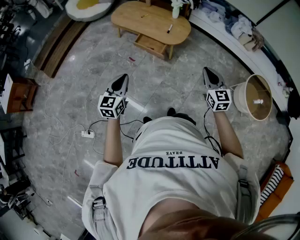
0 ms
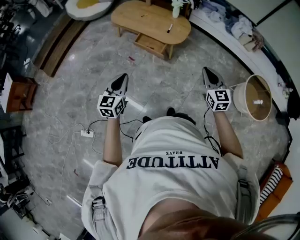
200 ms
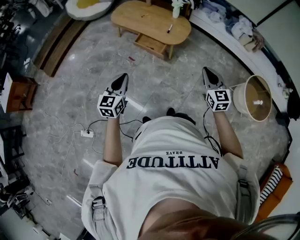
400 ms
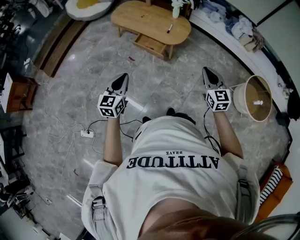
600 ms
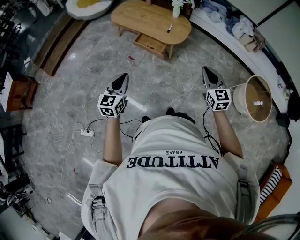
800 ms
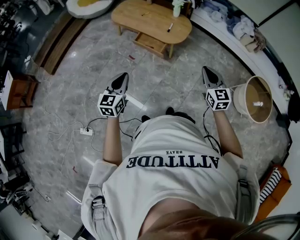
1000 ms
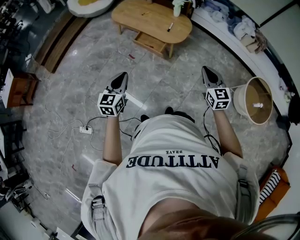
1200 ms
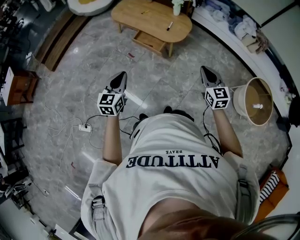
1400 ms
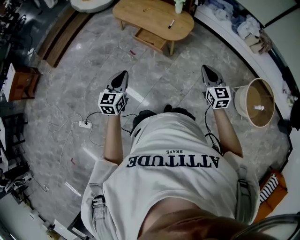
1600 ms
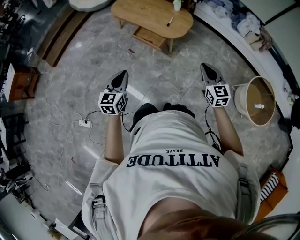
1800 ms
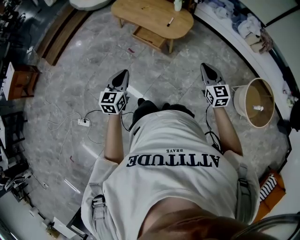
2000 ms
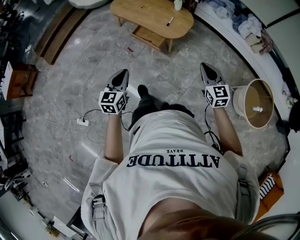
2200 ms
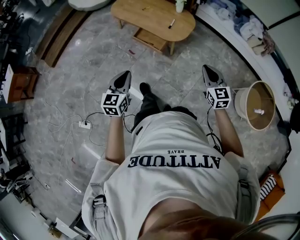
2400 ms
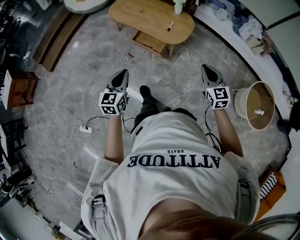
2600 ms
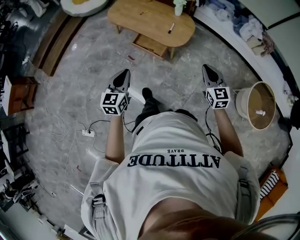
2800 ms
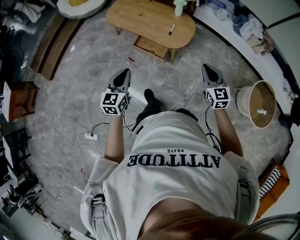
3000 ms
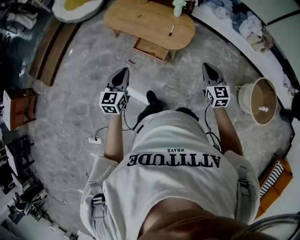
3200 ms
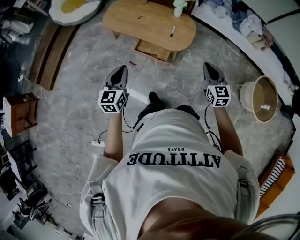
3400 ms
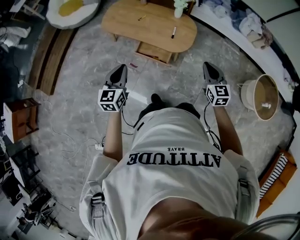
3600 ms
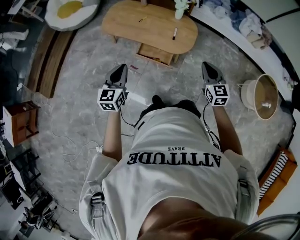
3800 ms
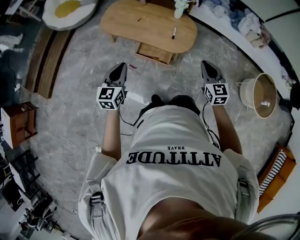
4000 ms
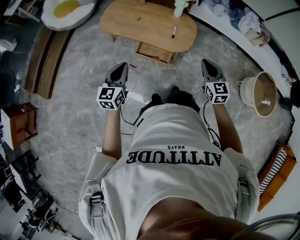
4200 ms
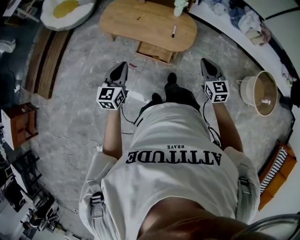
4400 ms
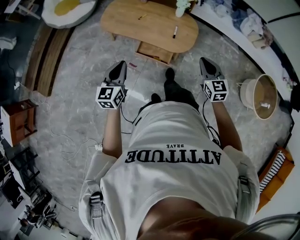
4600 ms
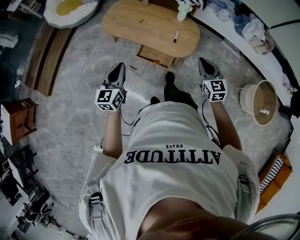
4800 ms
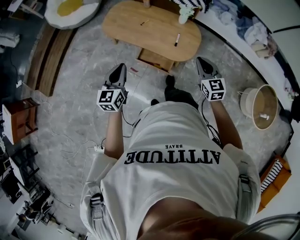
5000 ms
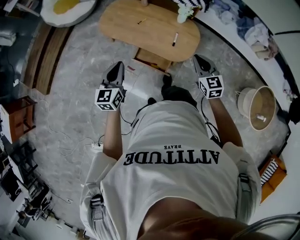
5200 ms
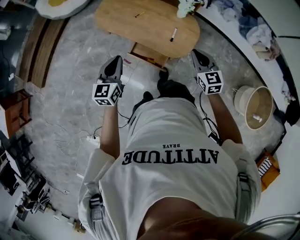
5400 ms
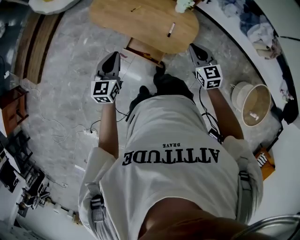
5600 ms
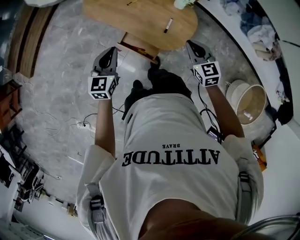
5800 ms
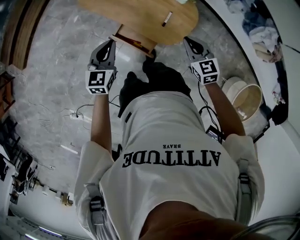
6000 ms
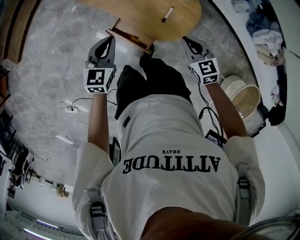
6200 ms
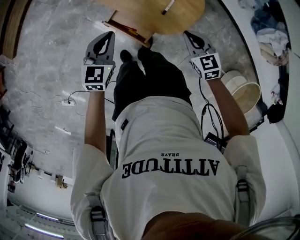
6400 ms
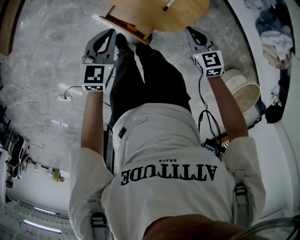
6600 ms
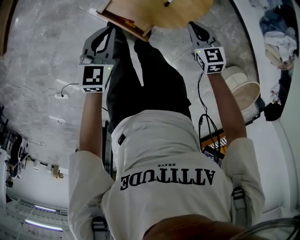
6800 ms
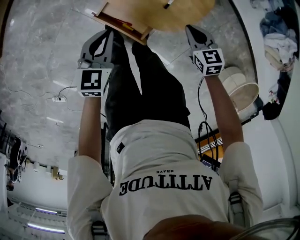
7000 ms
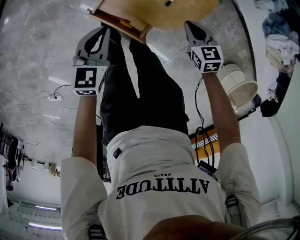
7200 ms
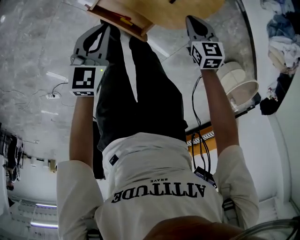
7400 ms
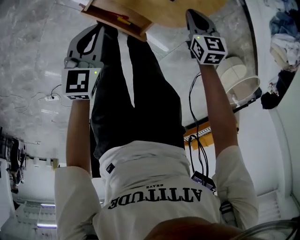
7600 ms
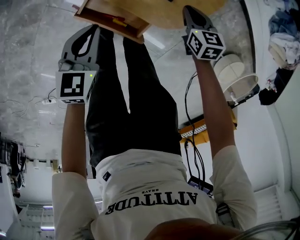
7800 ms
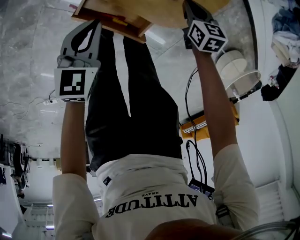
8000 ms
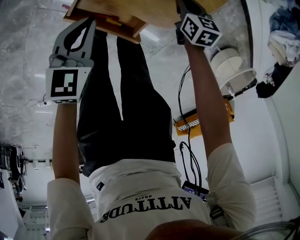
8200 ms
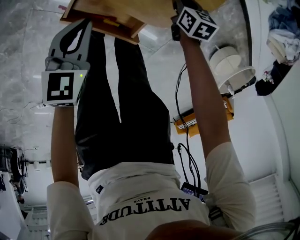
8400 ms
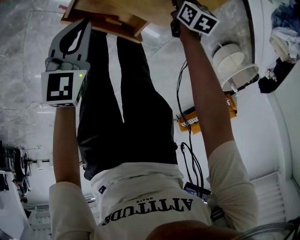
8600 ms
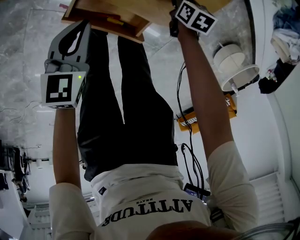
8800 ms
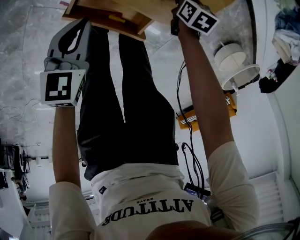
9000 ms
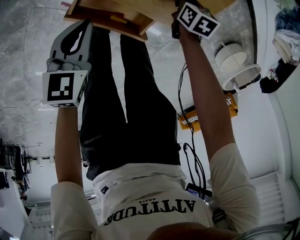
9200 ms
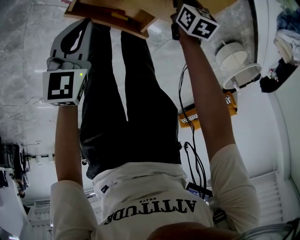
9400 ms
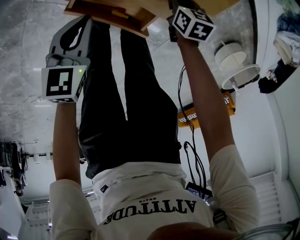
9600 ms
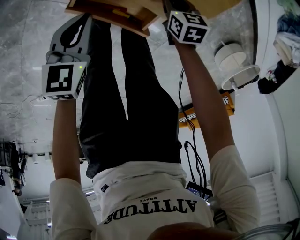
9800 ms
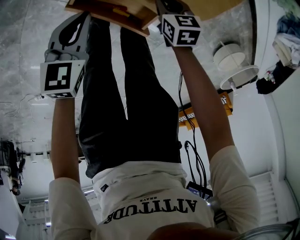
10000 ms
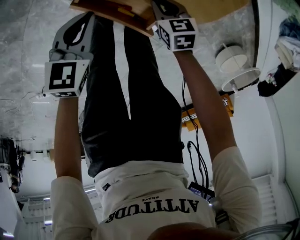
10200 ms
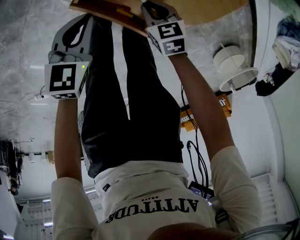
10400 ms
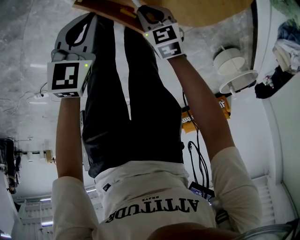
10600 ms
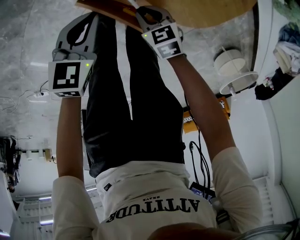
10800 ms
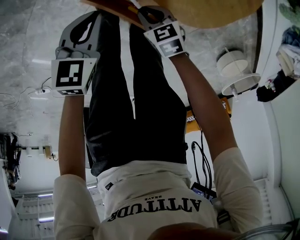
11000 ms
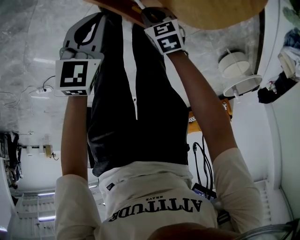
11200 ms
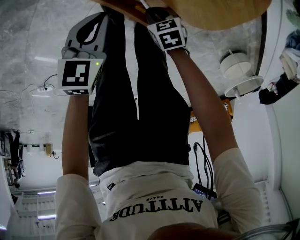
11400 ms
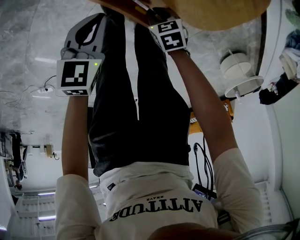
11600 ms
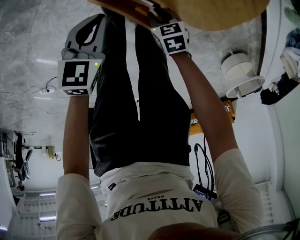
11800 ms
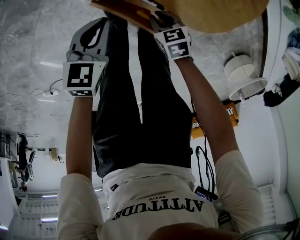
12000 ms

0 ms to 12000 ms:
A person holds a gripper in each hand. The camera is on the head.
0 ms to 1600 ms: The left gripper travels to the right by about 10 cm; the right gripper shifts about 10 cm to the right and forward.
1600 ms to 3000 ms: The grippers both shift forward by some 20 cm.
3000 ms to 4400 ms: The right gripper heads to the left and forward, covering about 15 cm. The left gripper goes some 20 cm forward and to the left.
4400 ms to 6000 ms: The right gripper goes roughly 35 cm forward and downward, and swivels about 30 degrees. Meanwhile the left gripper shifts approximately 30 cm forward, downward and to the right.
6000 ms to 7600 ms: The grippers both shift downward by about 35 cm. The right gripper swivels approximately 20 degrees.
7600 ms to 9000 ms: The left gripper is displaced downward by about 10 cm, while the right gripper heads downward, covering roughly 20 cm, and turns by roughly 30 degrees.
9000 ms to 10400 ms: The right gripper changes place by some 20 cm, and turns by some 40 degrees, while the left gripper shifts by about 5 cm.
10400 ms to 12000 ms: The right gripper ends up about 5 cm from where it was.

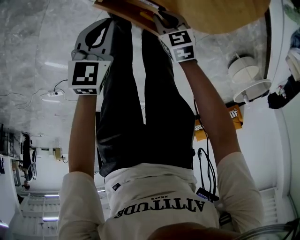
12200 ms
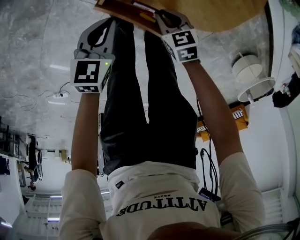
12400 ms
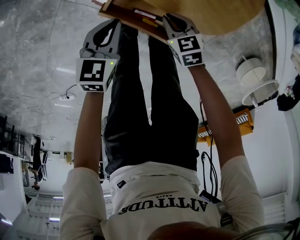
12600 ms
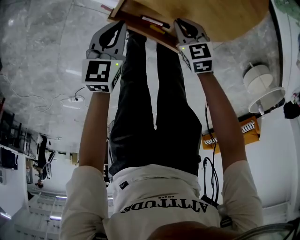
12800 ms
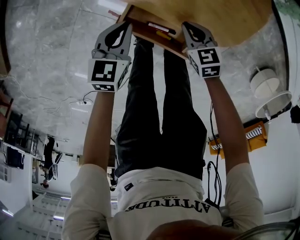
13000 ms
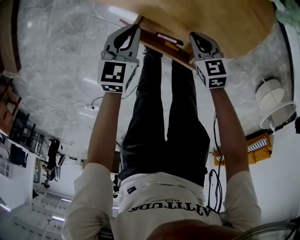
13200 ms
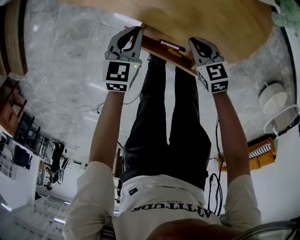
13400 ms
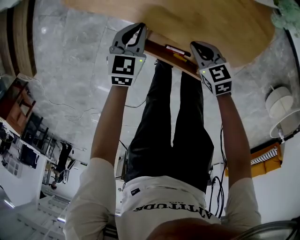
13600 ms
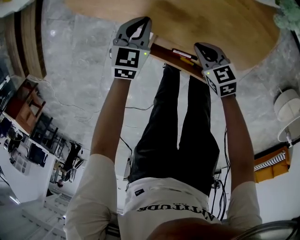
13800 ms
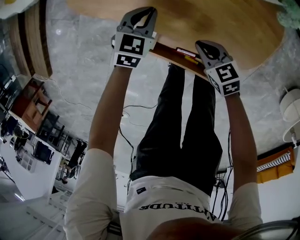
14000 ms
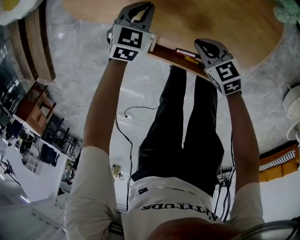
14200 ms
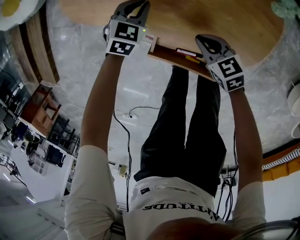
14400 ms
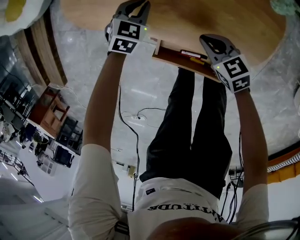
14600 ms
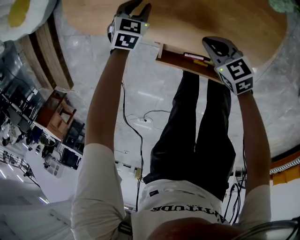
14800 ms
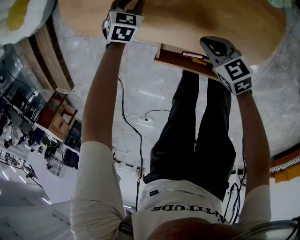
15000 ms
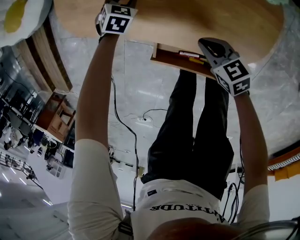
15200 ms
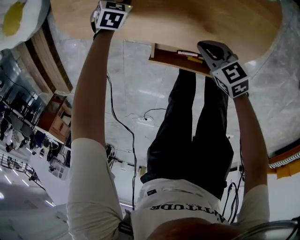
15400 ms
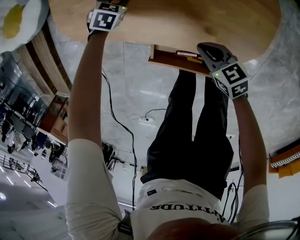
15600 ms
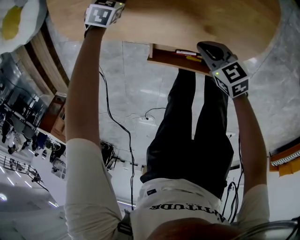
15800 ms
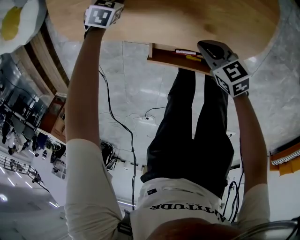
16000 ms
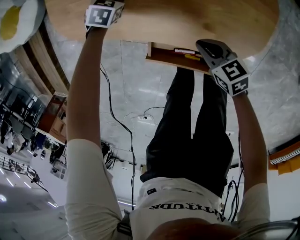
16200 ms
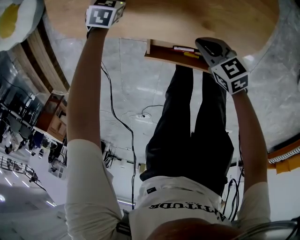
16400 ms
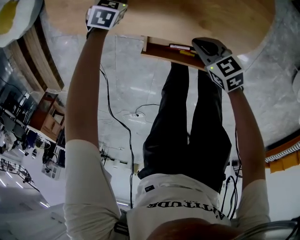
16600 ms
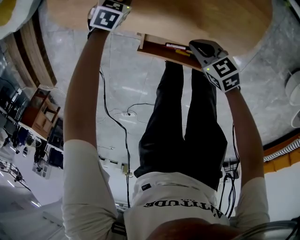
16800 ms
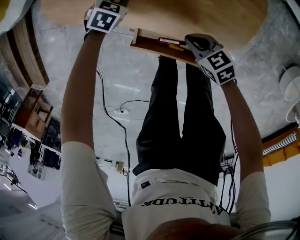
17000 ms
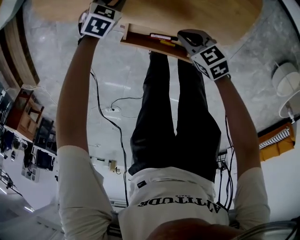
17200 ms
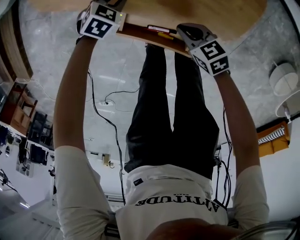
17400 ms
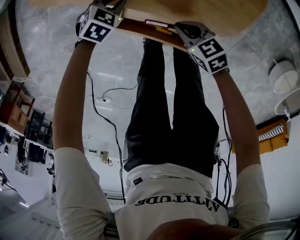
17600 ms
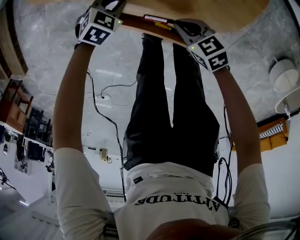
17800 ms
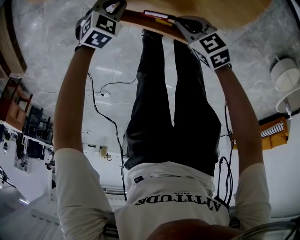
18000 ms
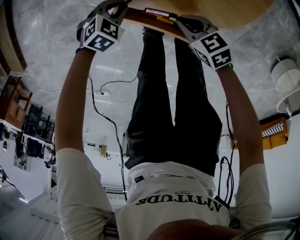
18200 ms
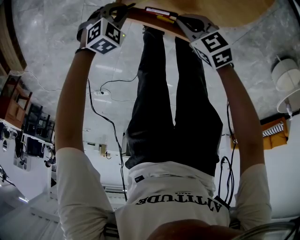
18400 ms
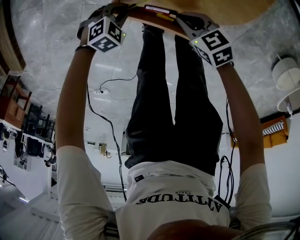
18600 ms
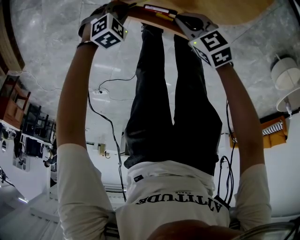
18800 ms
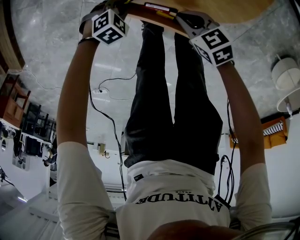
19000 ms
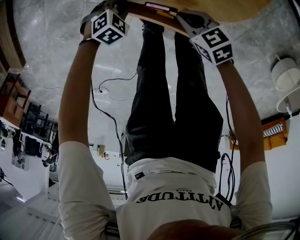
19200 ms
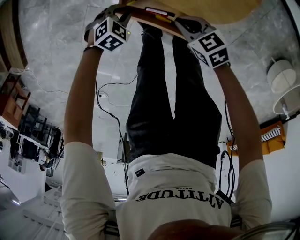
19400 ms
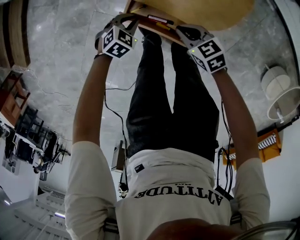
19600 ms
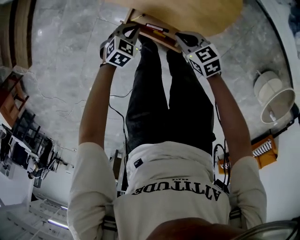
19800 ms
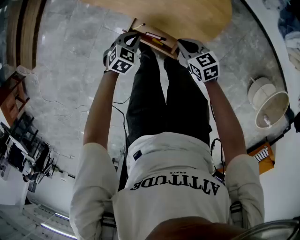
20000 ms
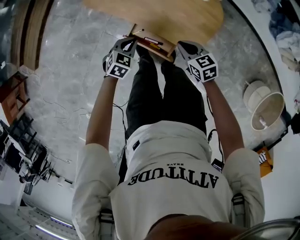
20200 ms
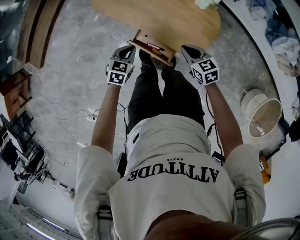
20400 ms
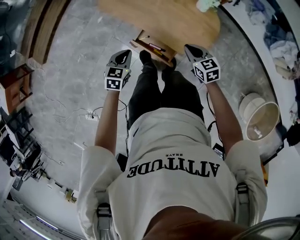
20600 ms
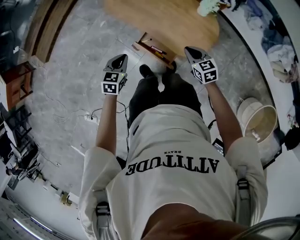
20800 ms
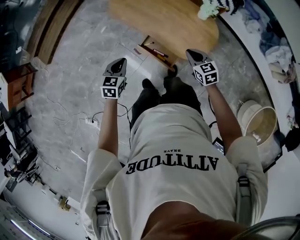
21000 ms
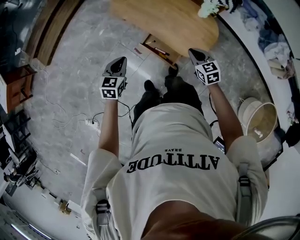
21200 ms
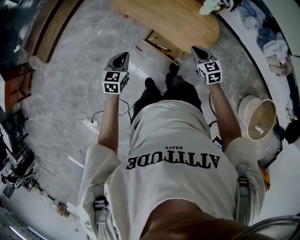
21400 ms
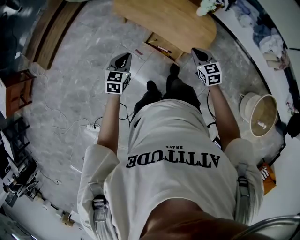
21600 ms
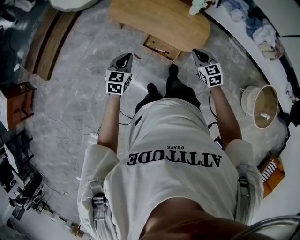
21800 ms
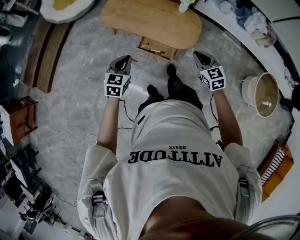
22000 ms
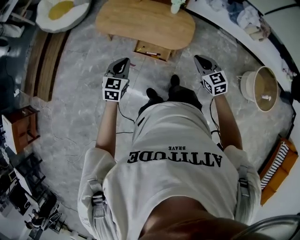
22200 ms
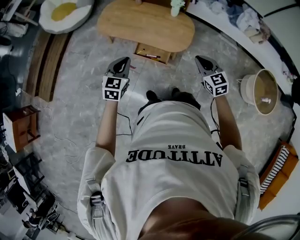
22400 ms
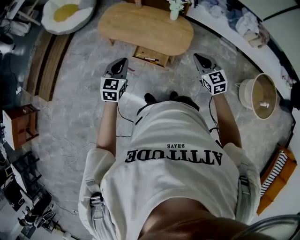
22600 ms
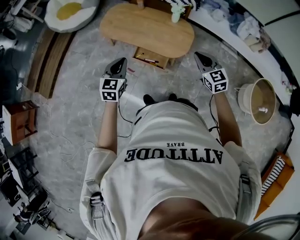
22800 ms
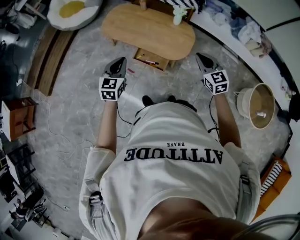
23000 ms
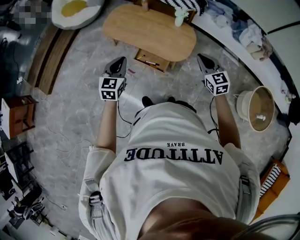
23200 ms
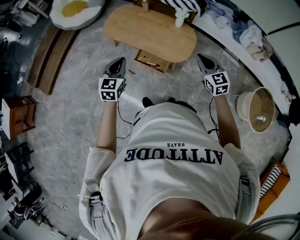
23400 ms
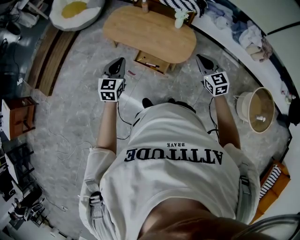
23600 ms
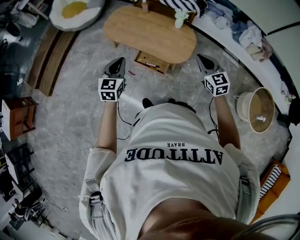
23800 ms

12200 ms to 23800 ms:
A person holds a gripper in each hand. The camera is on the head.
12200 ms to 13600 ms: The right gripper goes some 15 cm forward and upward; the left gripper heads forward, covering some 15 cm.
13600 ms to 15000 ms: The right gripper shifts by some 5 cm; the left gripper moves forward and downward, some 20 cm, swivels some 30 degrees, and opens its fingers.
15000 ms to 16600 ms: The grippers stay close to where they were, moving slightly.
16600 ms to 18000 ms: The right gripper changes place by roughly 10 cm; the left gripper changes place by roughly 25 cm.
18000 ms to 19400 ms: The right gripper moves upward, some 5 cm; the left gripper ends up some 5 cm from where it was.
19400 ms to 21000 ms: Both grippers move upward, some 35 cm. The right gripper rotates roughly 20 degrees. Meanwhile the left gripper rotates some 60 degrees.
21000 ms to 22400 ms: The right gripper shifts some 30 cm backward and upward, and changes its angle by roughly 20 degrees; the left gripper is displaced upward and backward by about 20 cm, and rotates about 30 degrees.
22400 ms to 23800 ms: The right gripper shifts about 5 cm forward.
